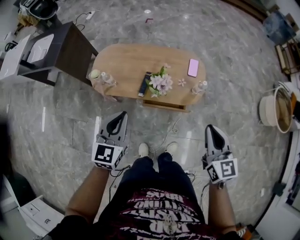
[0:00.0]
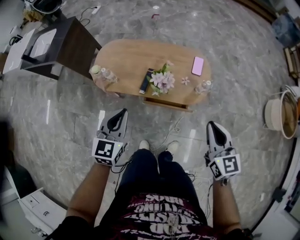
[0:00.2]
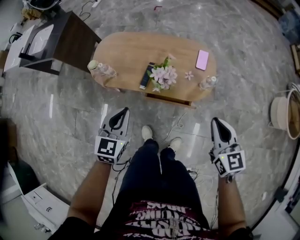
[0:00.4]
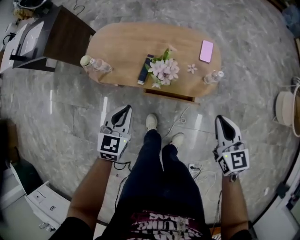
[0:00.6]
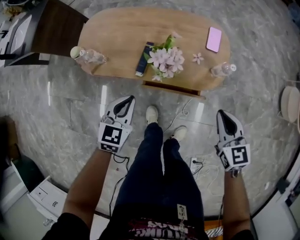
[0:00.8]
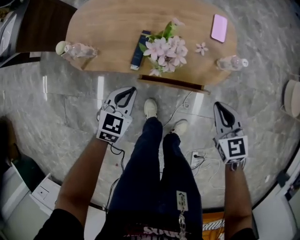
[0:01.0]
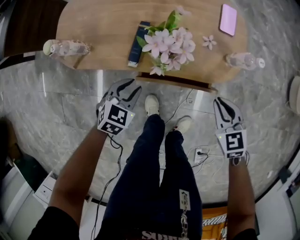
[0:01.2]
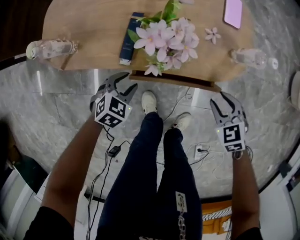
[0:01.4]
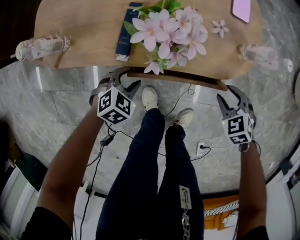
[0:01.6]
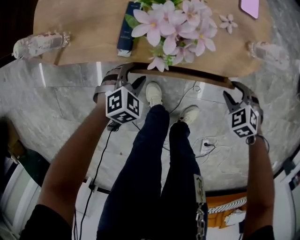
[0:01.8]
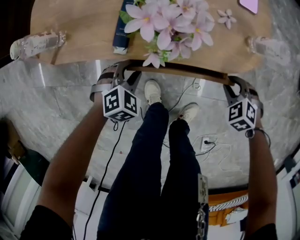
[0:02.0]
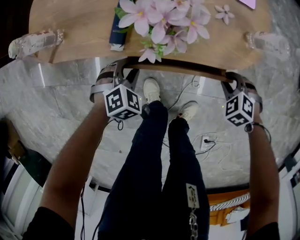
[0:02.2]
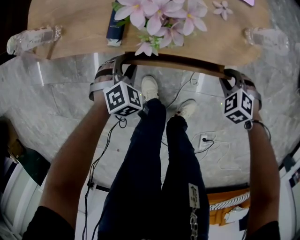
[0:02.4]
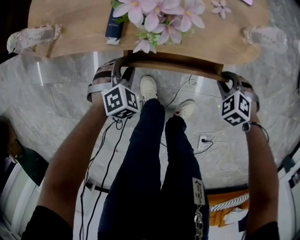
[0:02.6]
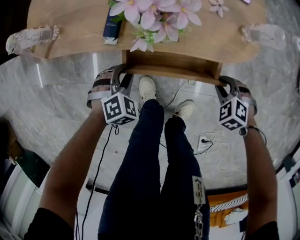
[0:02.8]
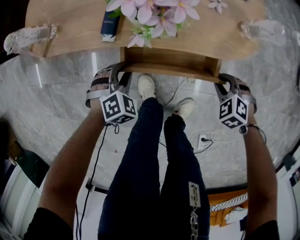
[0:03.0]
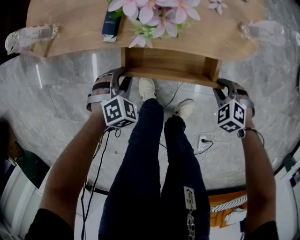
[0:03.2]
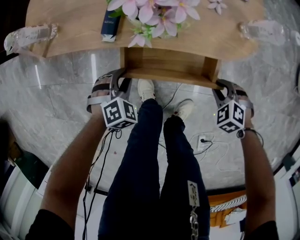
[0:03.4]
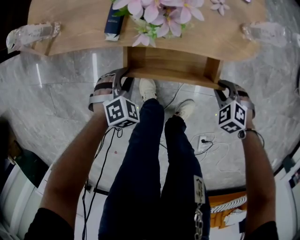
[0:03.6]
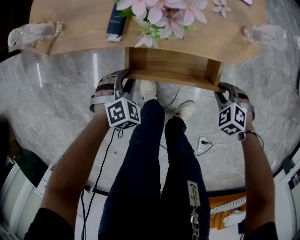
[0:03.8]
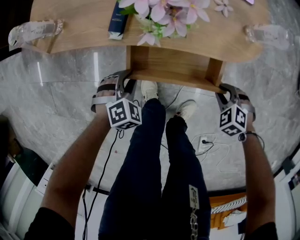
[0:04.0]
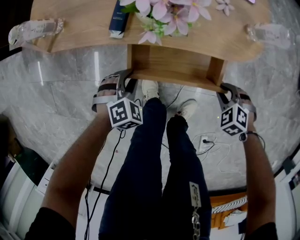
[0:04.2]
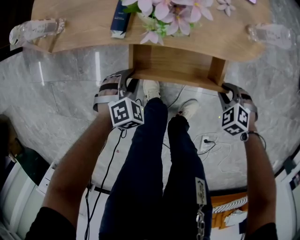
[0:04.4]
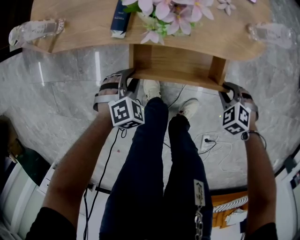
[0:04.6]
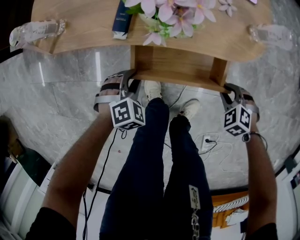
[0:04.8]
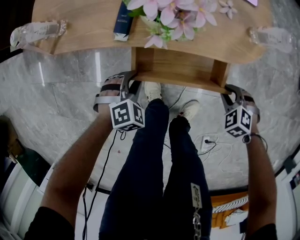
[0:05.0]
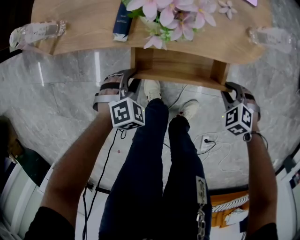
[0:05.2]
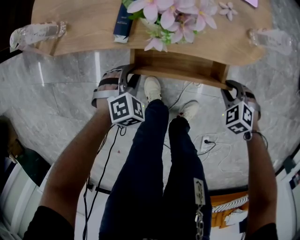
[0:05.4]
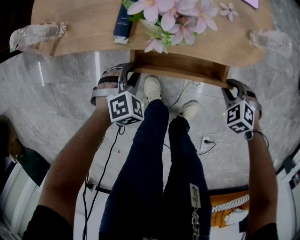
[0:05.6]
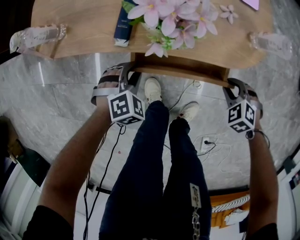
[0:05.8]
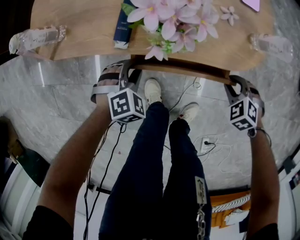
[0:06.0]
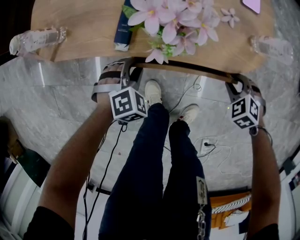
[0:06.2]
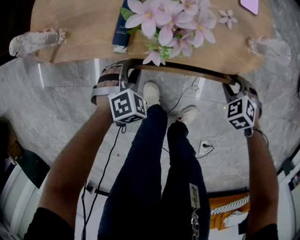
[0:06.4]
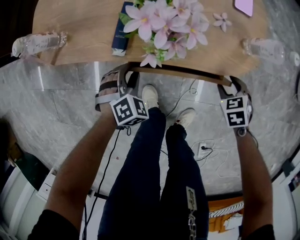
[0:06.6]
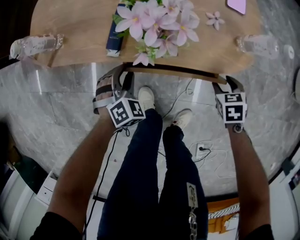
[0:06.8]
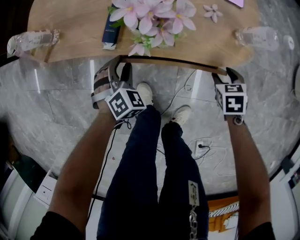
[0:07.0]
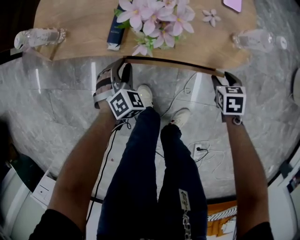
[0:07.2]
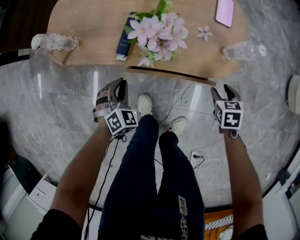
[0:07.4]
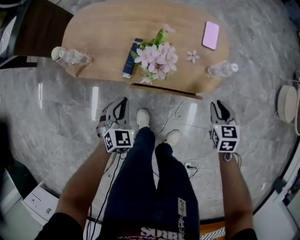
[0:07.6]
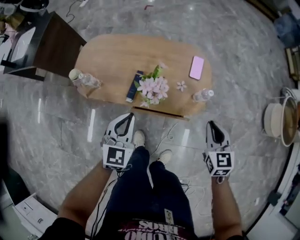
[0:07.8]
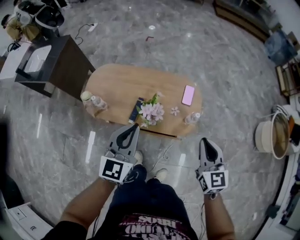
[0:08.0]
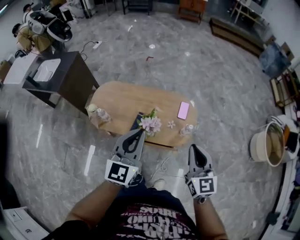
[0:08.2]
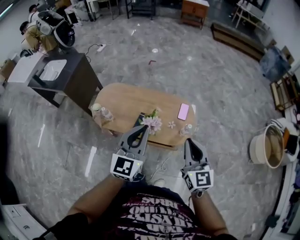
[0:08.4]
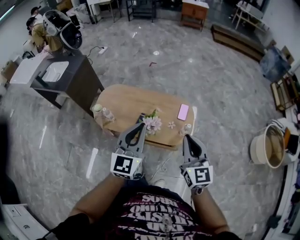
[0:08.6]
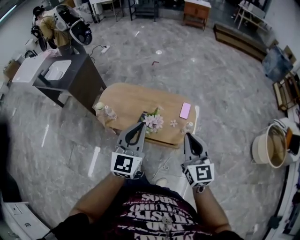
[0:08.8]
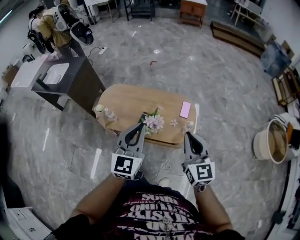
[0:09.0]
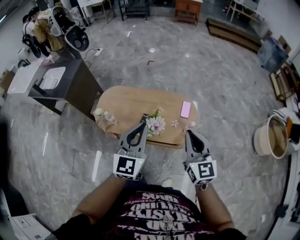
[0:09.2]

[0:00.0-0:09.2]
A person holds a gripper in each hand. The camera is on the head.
0:00.0 to 0:01.6: Both grippers travel together downward, approximately 60 cm. The left gripper tilts its fingers roughly 50 degrees downward, and opens. Meanwhile the right gripper tilts its fingers approximately 50 degrees downward, and opens.
0:01.6 to 0:03.0: The left gripper turns by approximately 20 degrees, while the right gripper moves downward, about 5 cm.
0:03.0 to 0:04.6: The grippers make only small movements.
0:04.6 to 0:06.2: The right gripper changes place by roughly 10 cm. The left gripper shifts by some 10 cm.
0:06.2 to 0:07.6: The two grippers go about 20 cm upward. The right gripper rotates around the line of its fingers by approximately 40 degrees, clockwise from behind, and opens, then closes again, while the left gripper turns by some 40 degrees, and closes.
0:07.6 to 0:09.2: Both grippers move upward, some 50 cm. The left gripper tilts its fingers about 40 degrees upward, while the right gripper tilts its fingers approximately 40 degrees upward, and closes up.

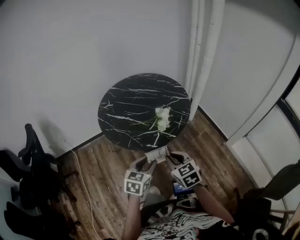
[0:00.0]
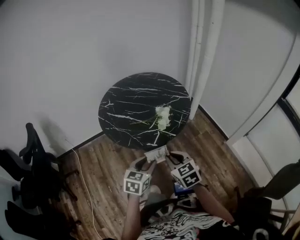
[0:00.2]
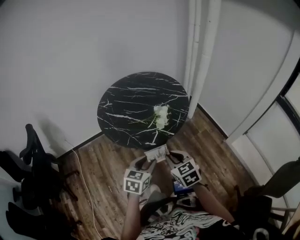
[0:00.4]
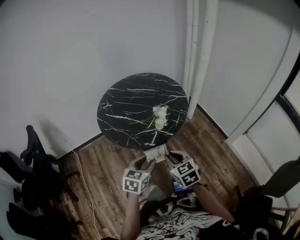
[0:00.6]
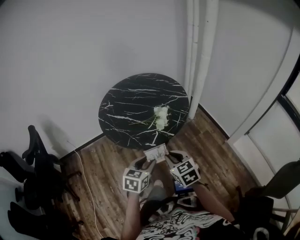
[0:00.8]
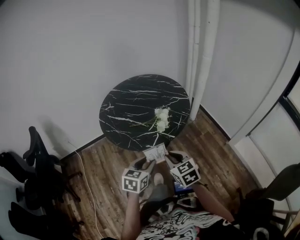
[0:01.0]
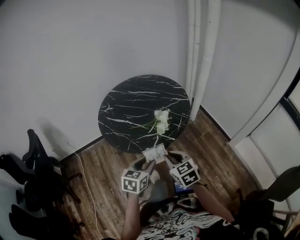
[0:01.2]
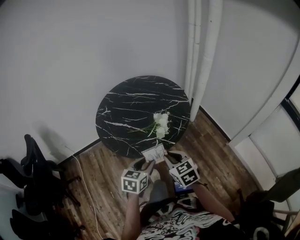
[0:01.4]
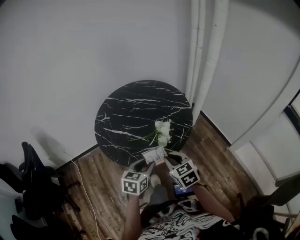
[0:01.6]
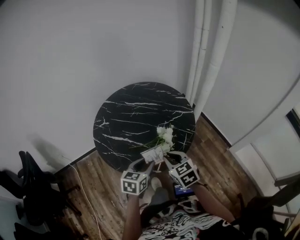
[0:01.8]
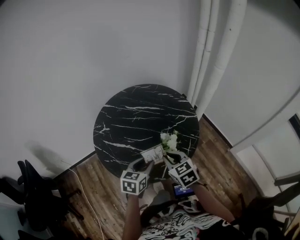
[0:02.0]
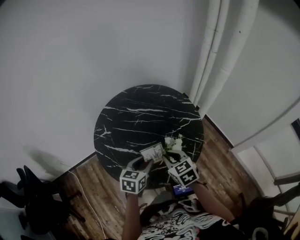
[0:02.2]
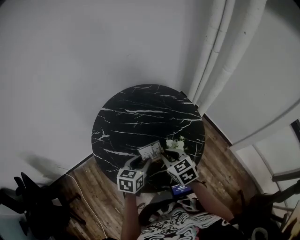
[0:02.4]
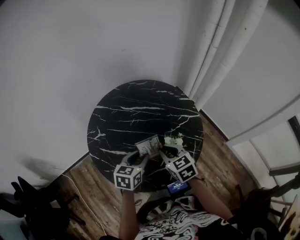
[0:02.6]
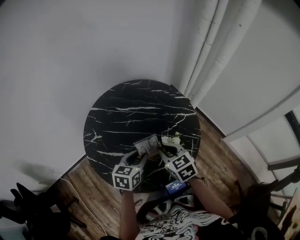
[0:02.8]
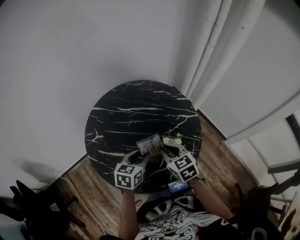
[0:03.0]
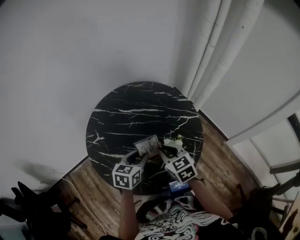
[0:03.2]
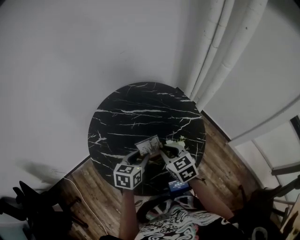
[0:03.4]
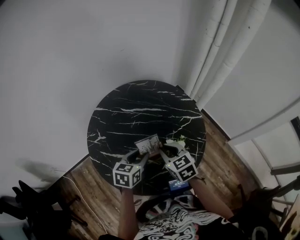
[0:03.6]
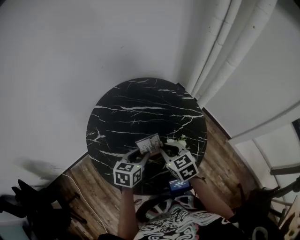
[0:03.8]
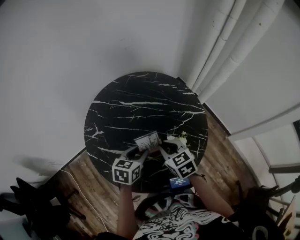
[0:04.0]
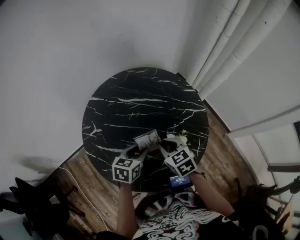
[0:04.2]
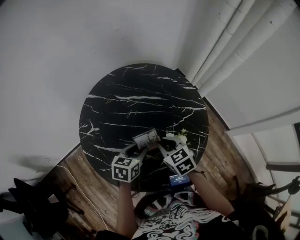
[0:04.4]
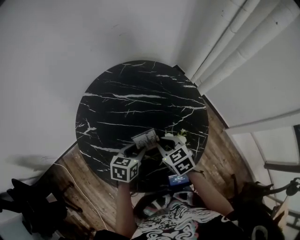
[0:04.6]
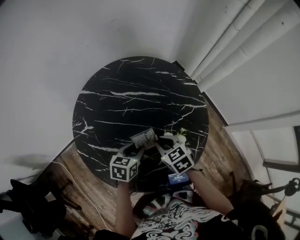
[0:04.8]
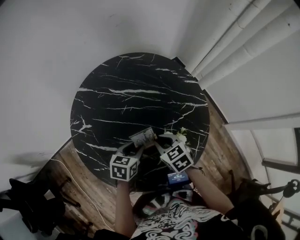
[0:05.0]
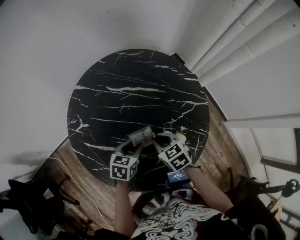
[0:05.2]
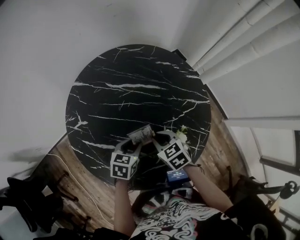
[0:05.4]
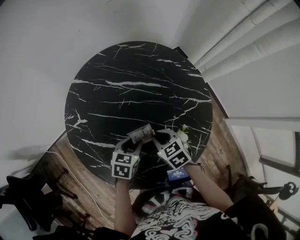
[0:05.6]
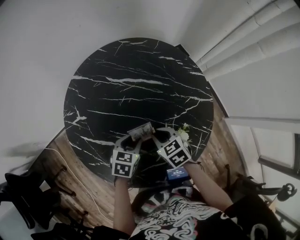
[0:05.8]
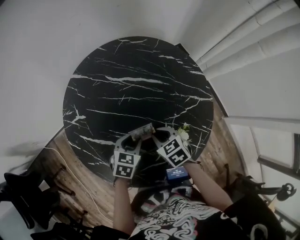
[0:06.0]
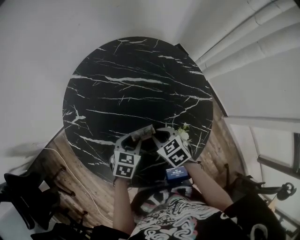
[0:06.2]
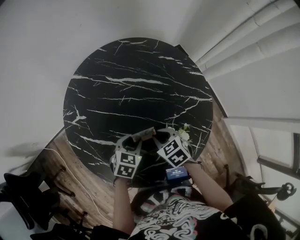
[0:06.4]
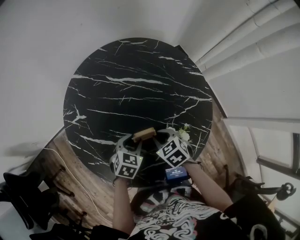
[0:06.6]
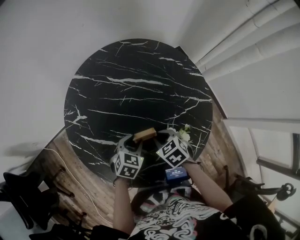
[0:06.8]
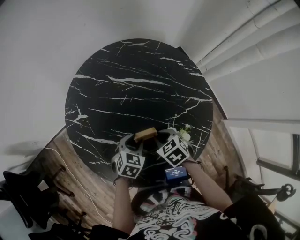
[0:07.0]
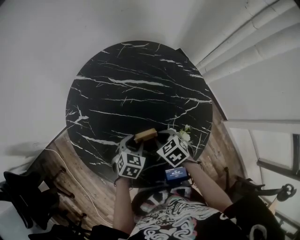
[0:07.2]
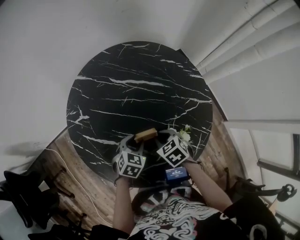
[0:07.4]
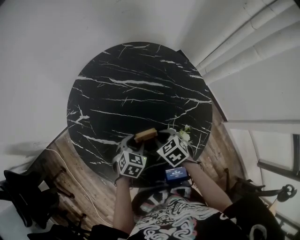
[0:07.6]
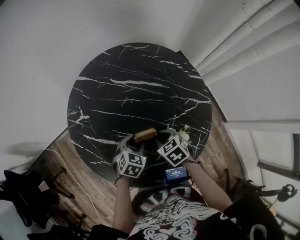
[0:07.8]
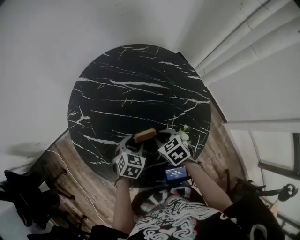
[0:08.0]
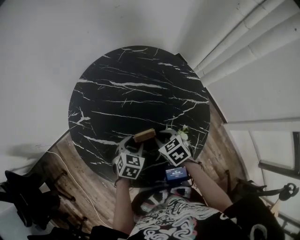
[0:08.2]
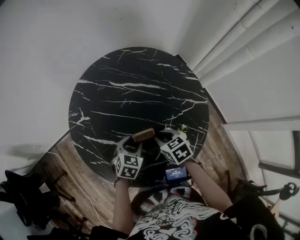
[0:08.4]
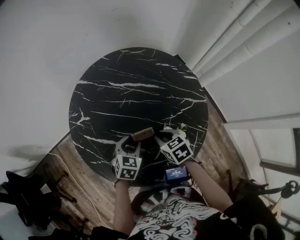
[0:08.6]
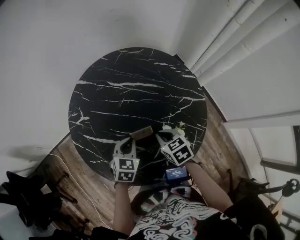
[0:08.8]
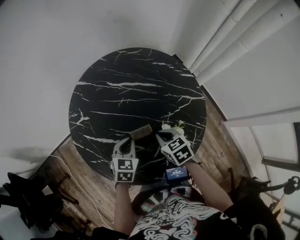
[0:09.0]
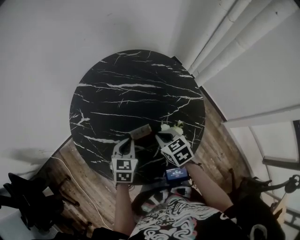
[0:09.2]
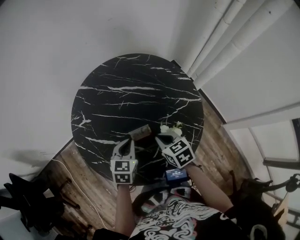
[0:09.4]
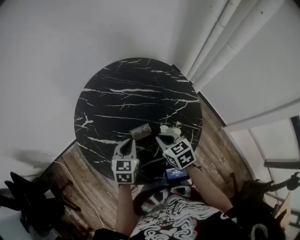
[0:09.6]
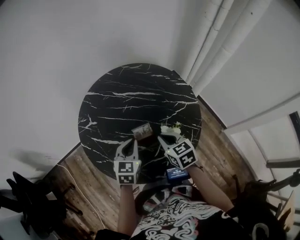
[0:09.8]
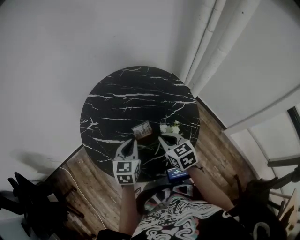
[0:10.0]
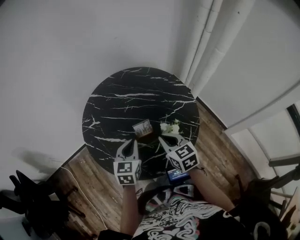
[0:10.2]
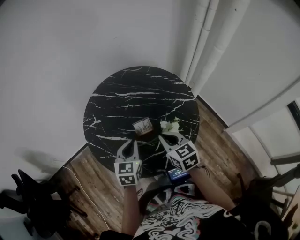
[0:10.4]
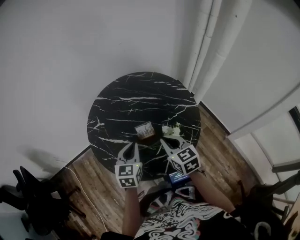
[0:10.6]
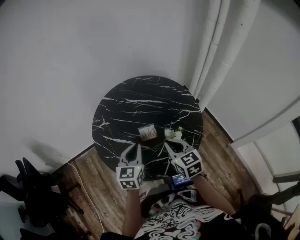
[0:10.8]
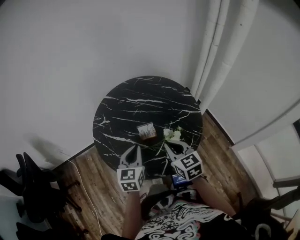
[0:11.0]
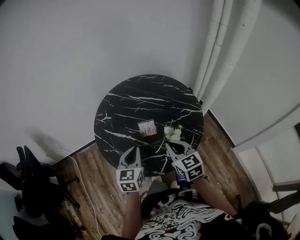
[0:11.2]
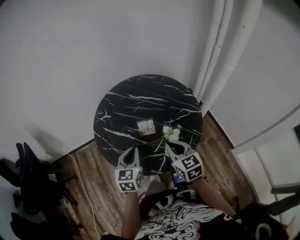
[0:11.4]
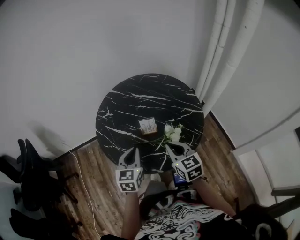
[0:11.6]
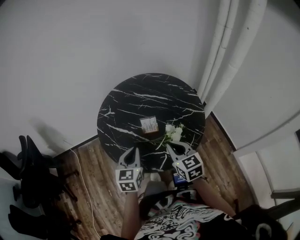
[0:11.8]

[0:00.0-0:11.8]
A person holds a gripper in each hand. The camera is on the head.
0:00.0 to 0:01.4: Both grippers move forward, some 5 cm.
0:01.4 to 0:03.0: The two grippers go roughly 30 cm forward.
0:03.0 to 0:04.4: Both grippers travel together downward, about 5 cm.
0:04.4 to 0:06.0: Both grippers move downward, roughly 10 cm.
0:06.0 to 0:07.4: The grippers move only a little.
0:07.4 to 0:08.8: The left gripper is displaced upward by approximately 5 cm, and closes its fingers.
0:08.8 to 0:10.4: Both grippers move upward and backward, roughly 15 cm. The right gripper changes its angle by roughly 20 degrees; the left gripper swivels approximately 20 degrees.
0:10.4 to 0:11.8: The grippers both shift backward by some 10 cm.

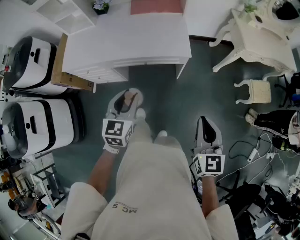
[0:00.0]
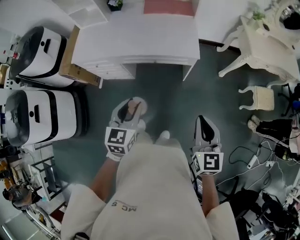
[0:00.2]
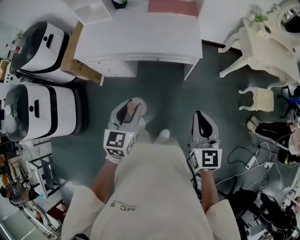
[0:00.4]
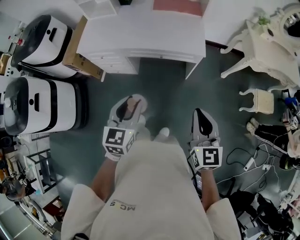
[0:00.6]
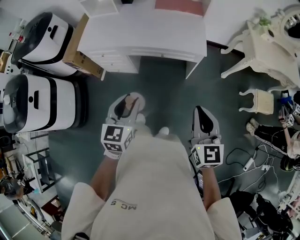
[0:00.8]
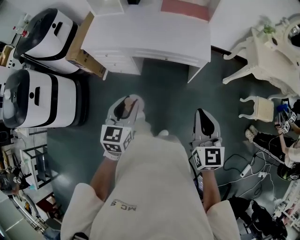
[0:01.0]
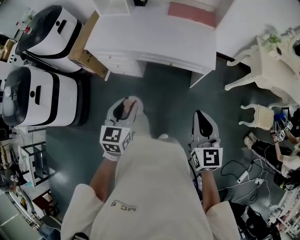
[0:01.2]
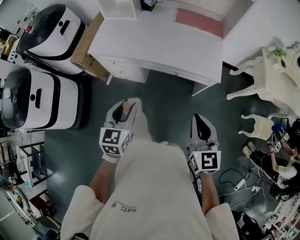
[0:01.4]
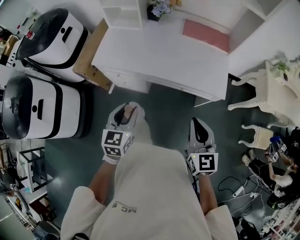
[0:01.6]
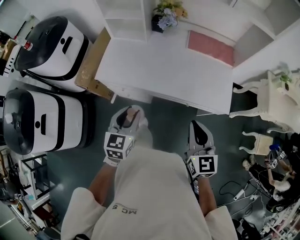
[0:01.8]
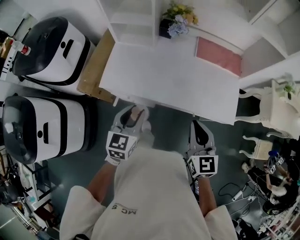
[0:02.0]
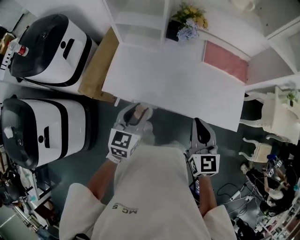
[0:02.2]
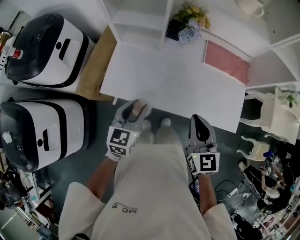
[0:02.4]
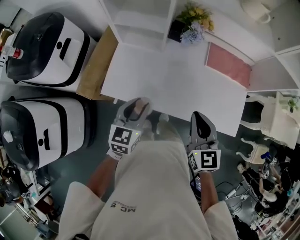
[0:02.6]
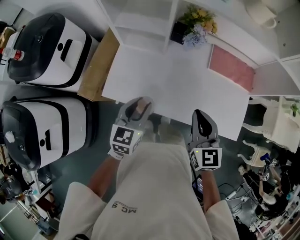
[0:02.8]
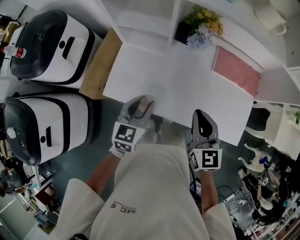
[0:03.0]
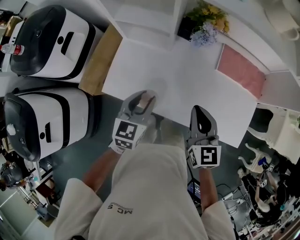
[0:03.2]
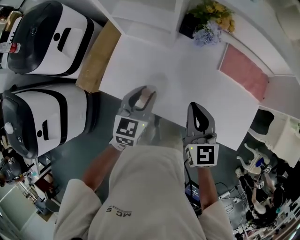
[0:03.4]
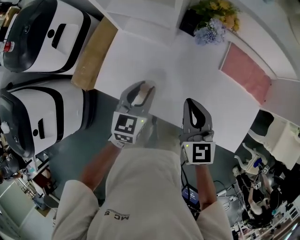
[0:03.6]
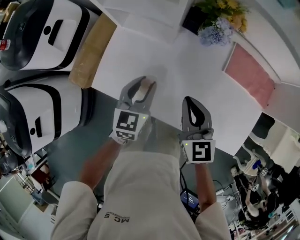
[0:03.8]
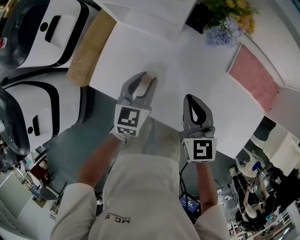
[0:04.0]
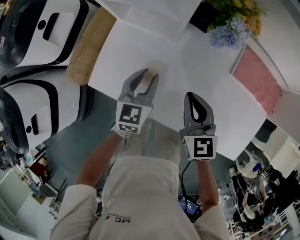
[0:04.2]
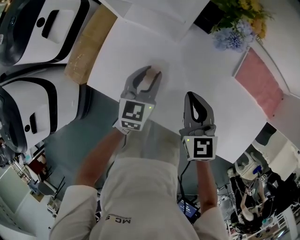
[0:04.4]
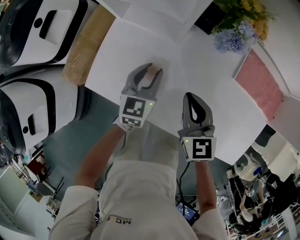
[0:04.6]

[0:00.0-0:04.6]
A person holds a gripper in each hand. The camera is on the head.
0:00.0 to 0:01.6: The left gripper travels to the left by some 25 cm; the right gripper goes some 30 cm to the left and forward.
0:01.6 to 0:03.0: The pair of grippers is taken forward and to the left, about 40 cm.
0:03.0 to 0:04.6: Both grippers travel together downward and forward, about 25 cm.
